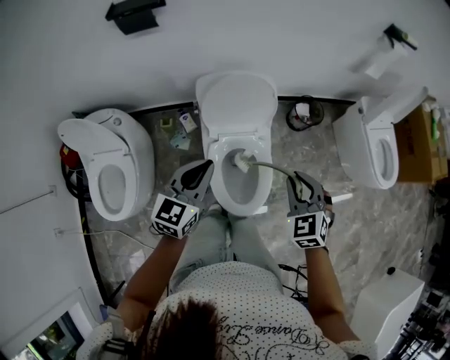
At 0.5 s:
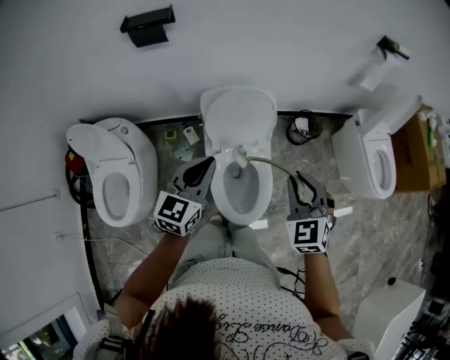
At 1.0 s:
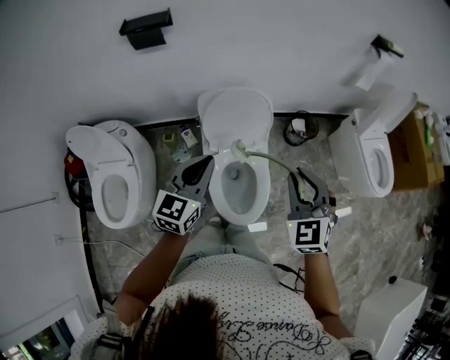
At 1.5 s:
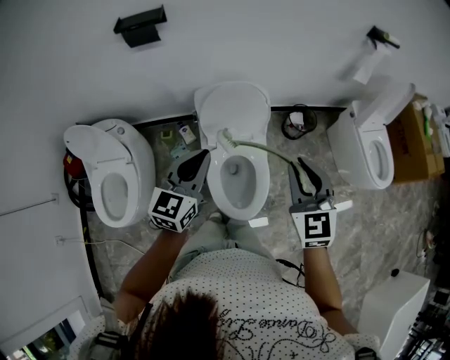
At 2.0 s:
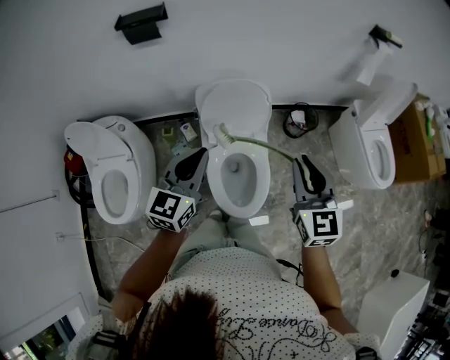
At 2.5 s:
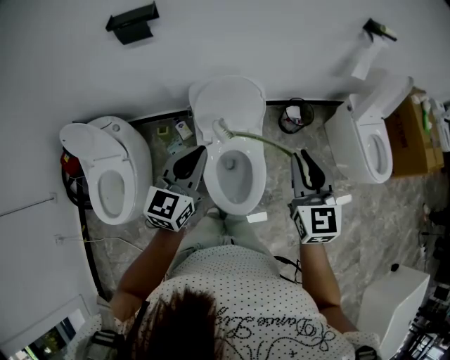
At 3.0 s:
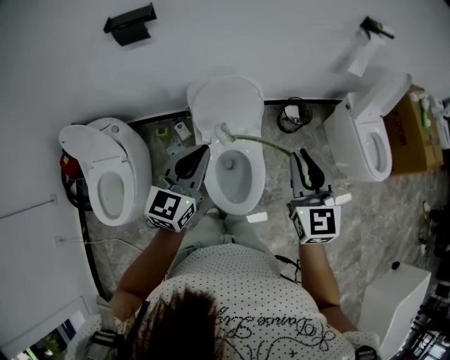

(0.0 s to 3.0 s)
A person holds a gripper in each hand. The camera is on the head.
0.0 s - 1.5 s: The right gripper heads upward, covering about 15 cm, and turns by about 20 degrees. The left gripper shifts roughly 5 cm upward.
1.5 s - 3.0 s: There are only small adjustments of the grippers.

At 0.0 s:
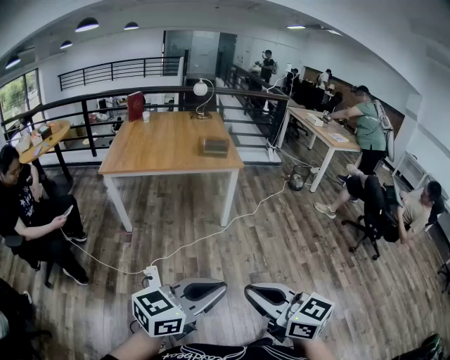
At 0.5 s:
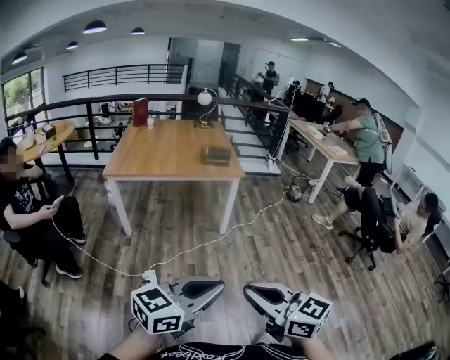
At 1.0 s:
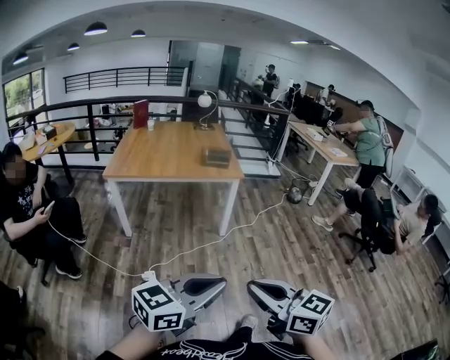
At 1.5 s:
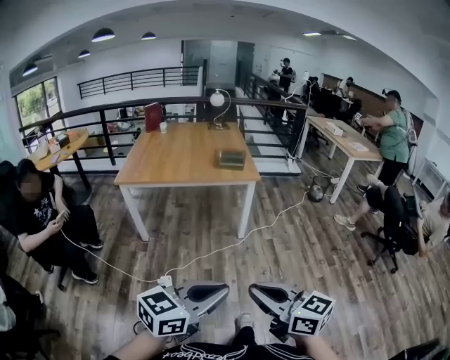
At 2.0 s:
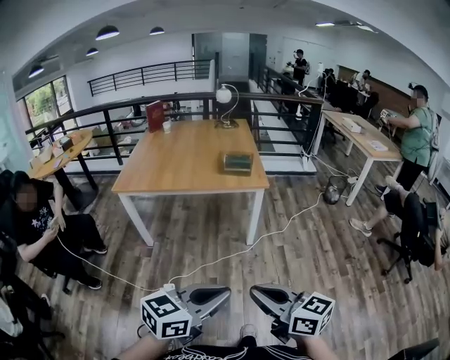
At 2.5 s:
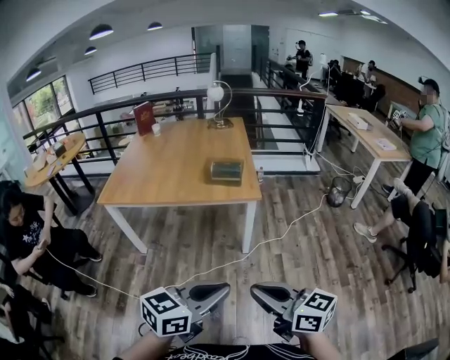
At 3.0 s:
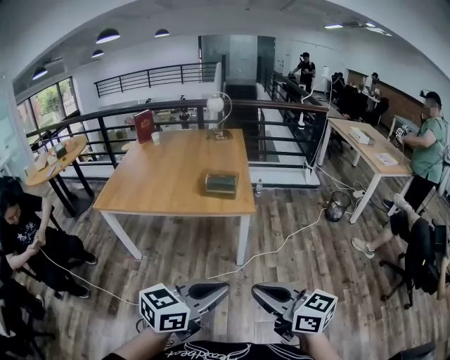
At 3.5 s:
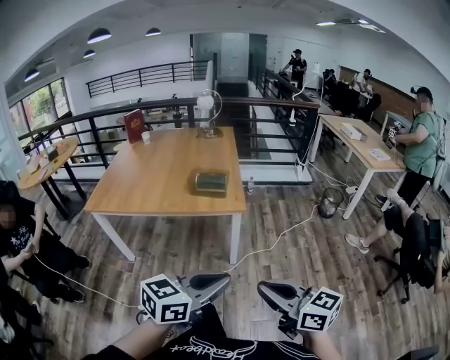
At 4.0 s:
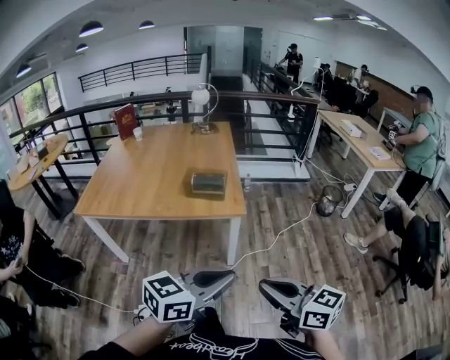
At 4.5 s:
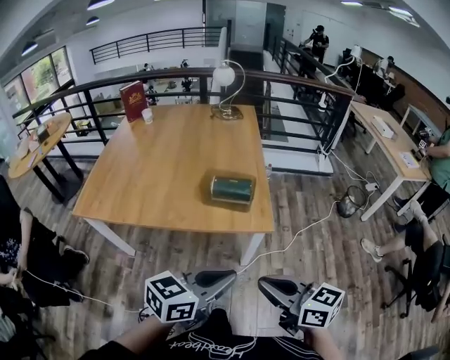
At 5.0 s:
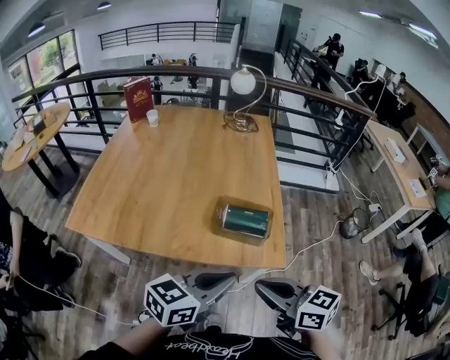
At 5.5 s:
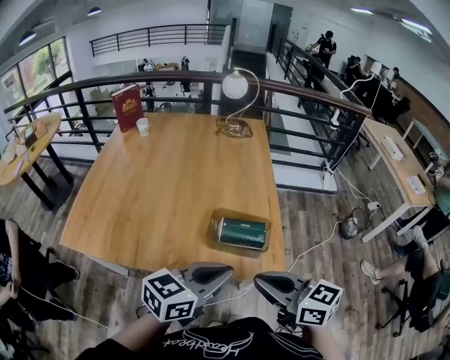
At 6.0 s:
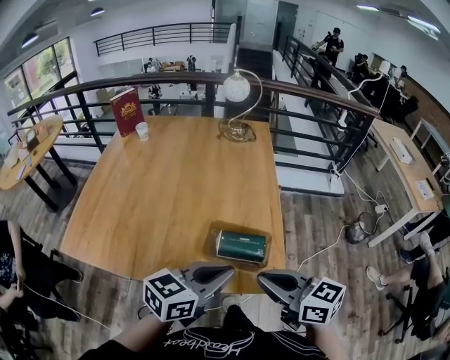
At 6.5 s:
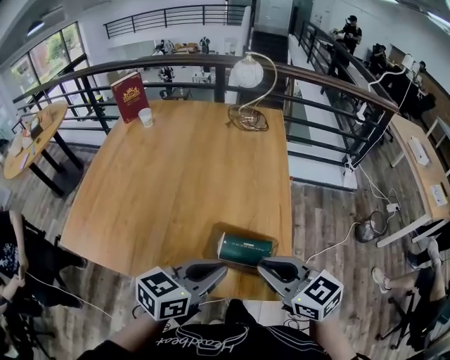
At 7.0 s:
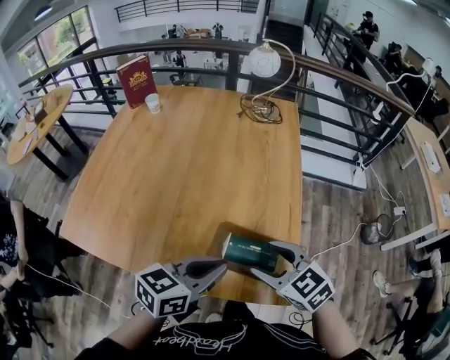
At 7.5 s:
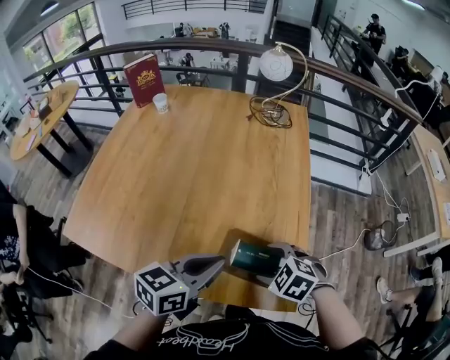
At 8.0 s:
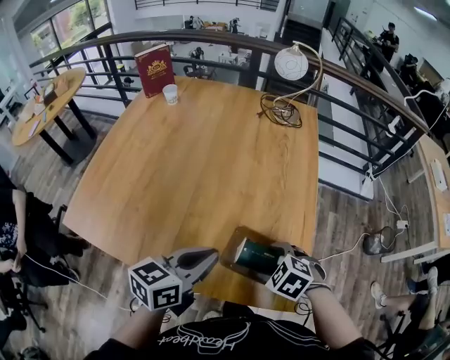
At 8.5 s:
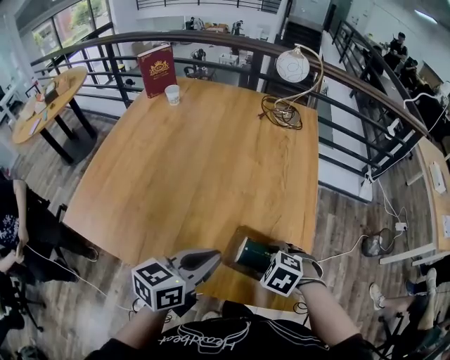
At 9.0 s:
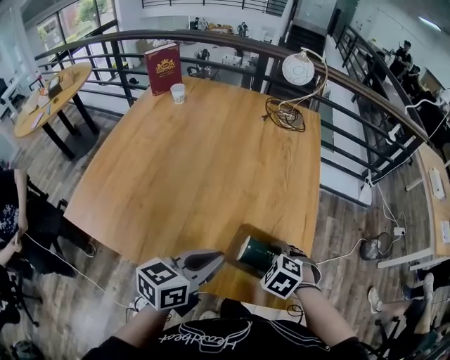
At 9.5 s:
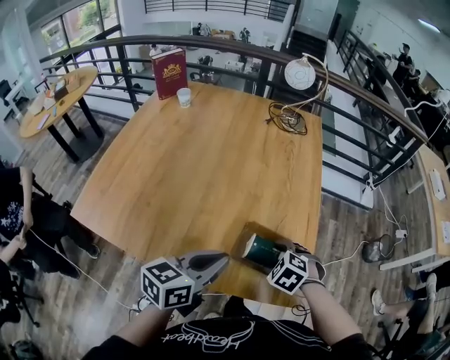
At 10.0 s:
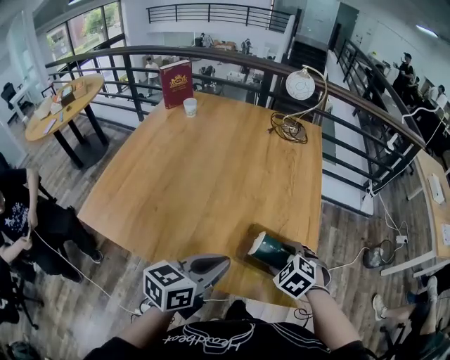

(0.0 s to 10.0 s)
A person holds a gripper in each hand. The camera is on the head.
0.0 s - 2.0 s: The grippers both shift forward by roughly 25 cm.
2.0 s - 4.0 s: The grippers both shift forward and to the right by roughly 35 cm.
4.0 s - 6.0 s: The two grippers travel together, forward, some 50 cm.
6.0 s - 8.0 s: The right gripper is displaced downward and forward by roughly 25 cm, angles its fingers downward, by some 50 degrees, and opens, while the left gripper is displaced forward, to the left and downward by about 20 cm, and changes its angle by roughly 20 degrees.
8.0 s - 10.0 s: The left gripper changes place by approximately 5 cm.

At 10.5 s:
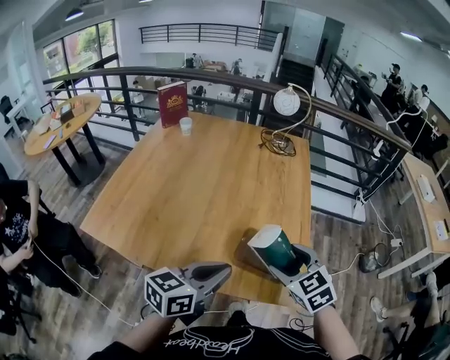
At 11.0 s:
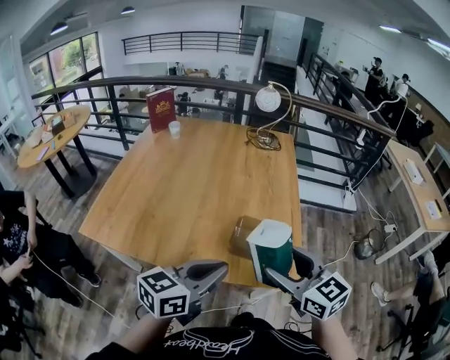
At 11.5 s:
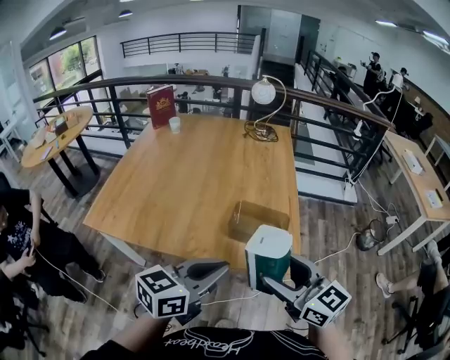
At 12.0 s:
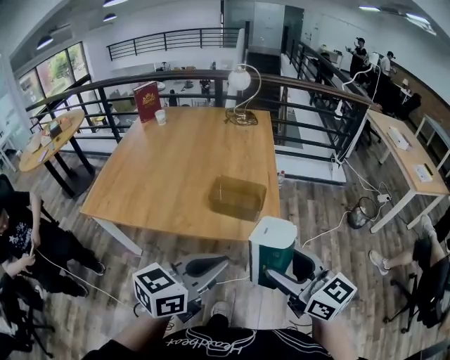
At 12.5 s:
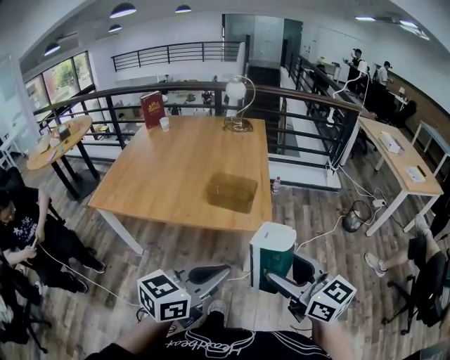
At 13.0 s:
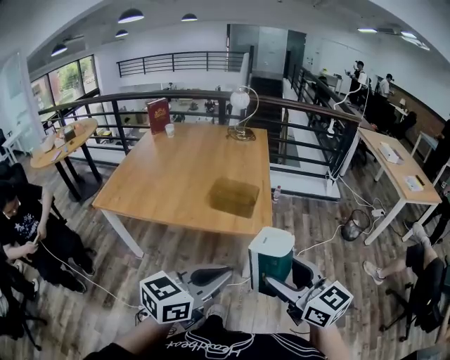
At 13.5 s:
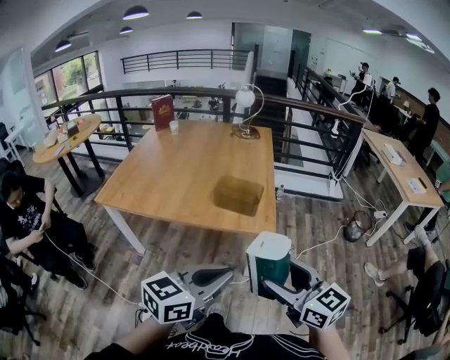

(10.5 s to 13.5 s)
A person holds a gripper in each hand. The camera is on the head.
10.5 s - 12.0 s: The right gripper heads backward, covering roughly 30 cm, and angles its fingers upward, by roughly 30 degrees. Meanwhile the left gripper moves backward and to the right, about 30 cm.
12.0 s - 13.5 s: The two grippers go about 15 cm backward.

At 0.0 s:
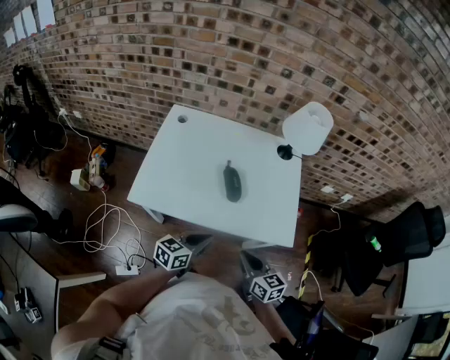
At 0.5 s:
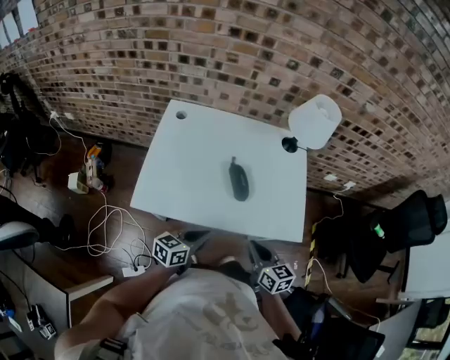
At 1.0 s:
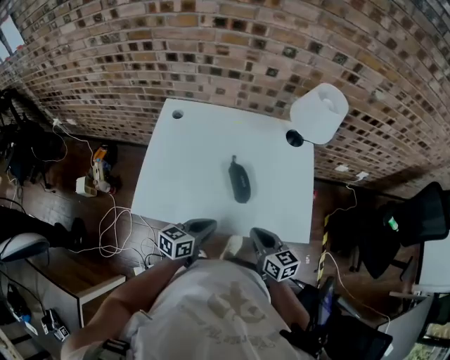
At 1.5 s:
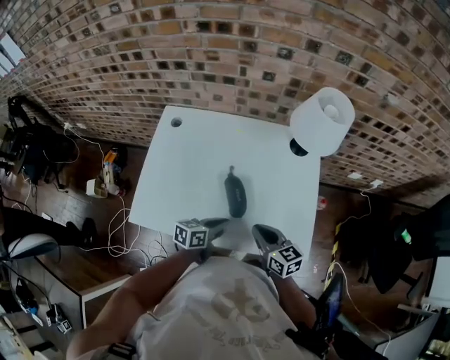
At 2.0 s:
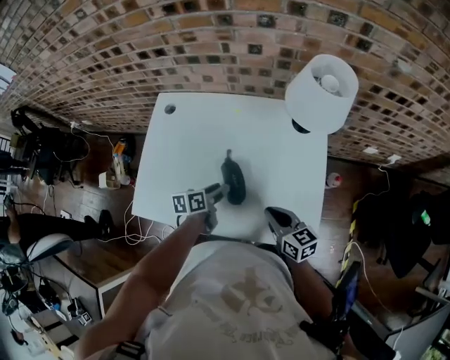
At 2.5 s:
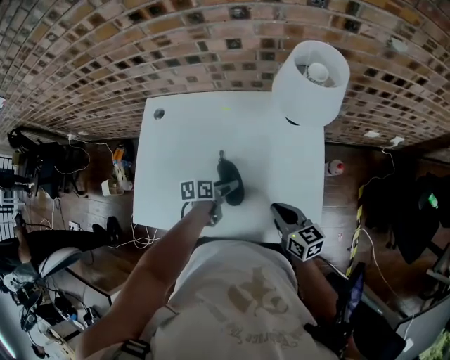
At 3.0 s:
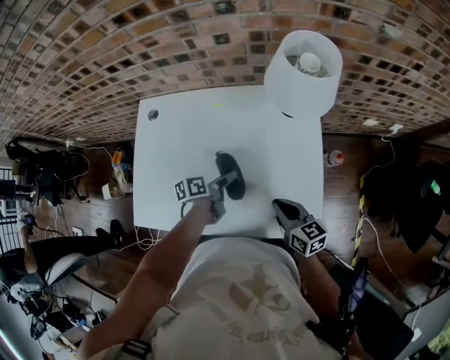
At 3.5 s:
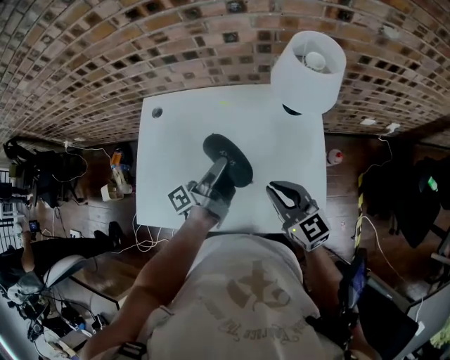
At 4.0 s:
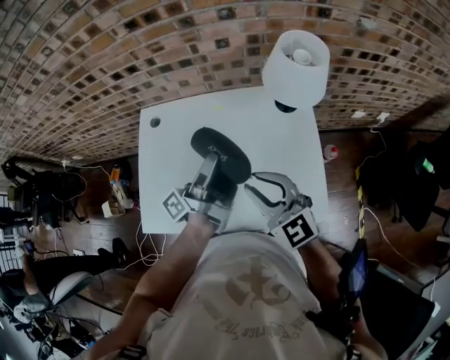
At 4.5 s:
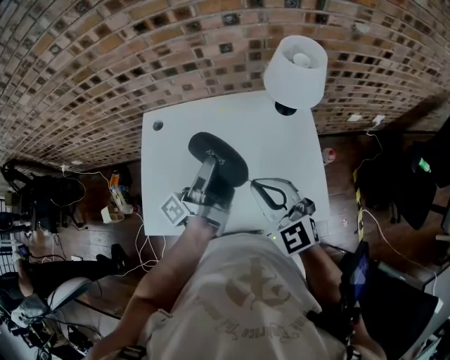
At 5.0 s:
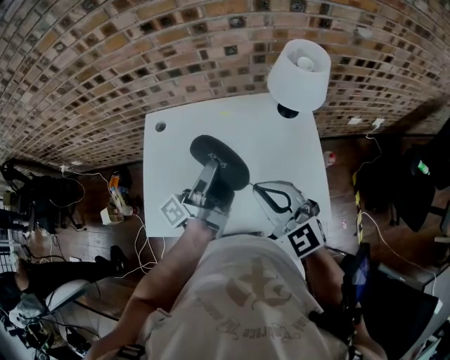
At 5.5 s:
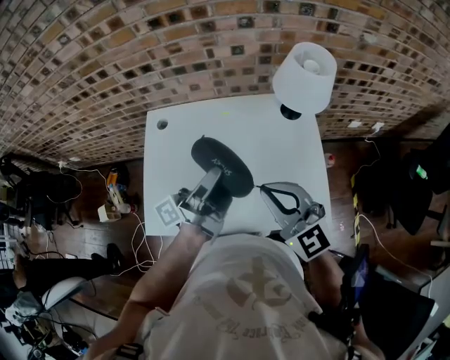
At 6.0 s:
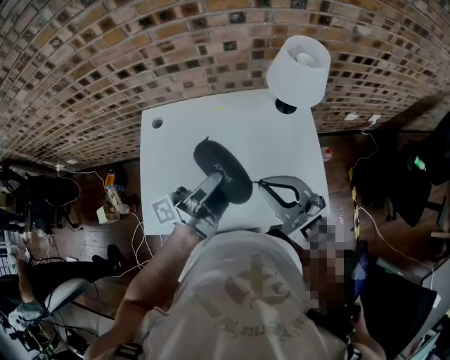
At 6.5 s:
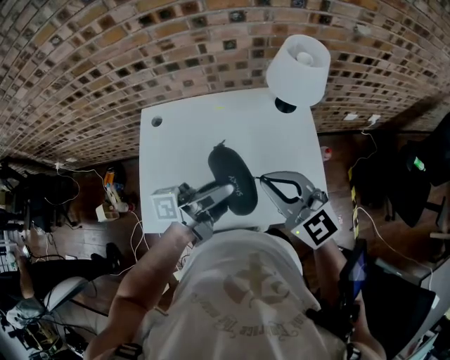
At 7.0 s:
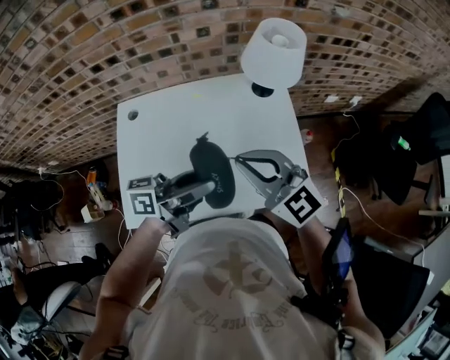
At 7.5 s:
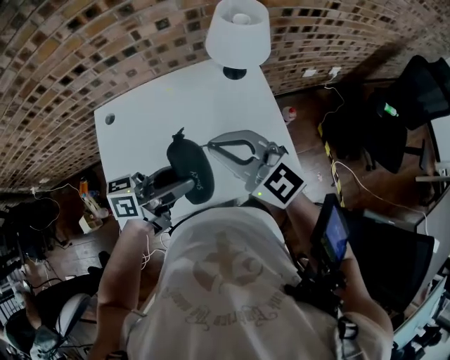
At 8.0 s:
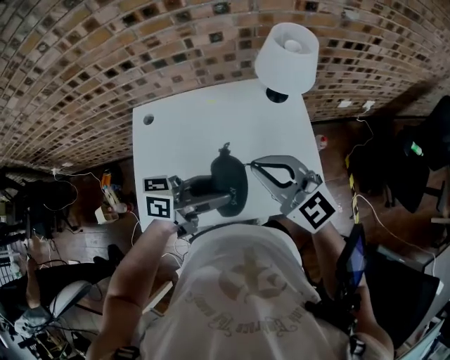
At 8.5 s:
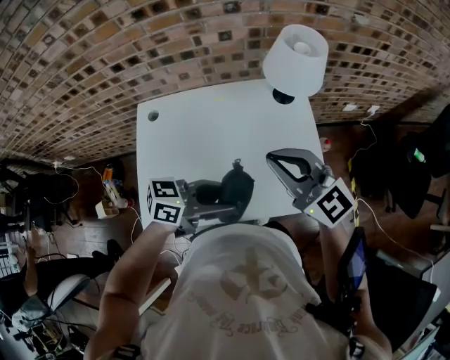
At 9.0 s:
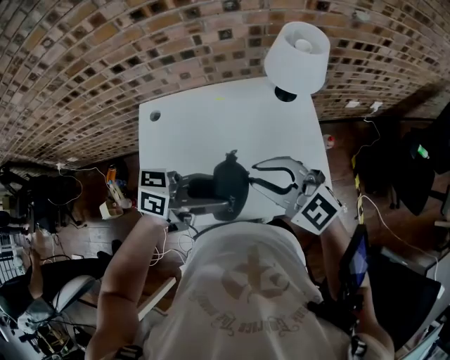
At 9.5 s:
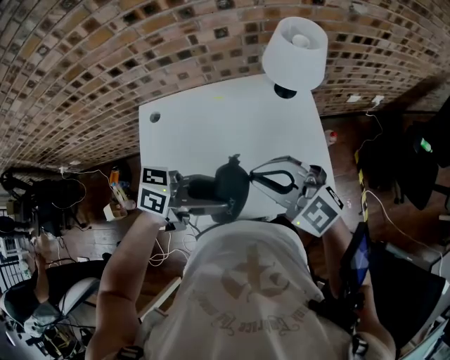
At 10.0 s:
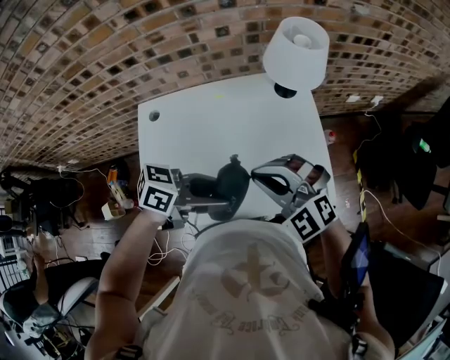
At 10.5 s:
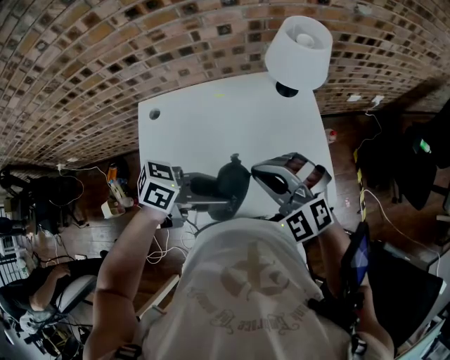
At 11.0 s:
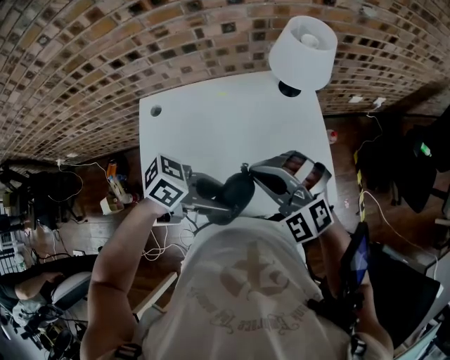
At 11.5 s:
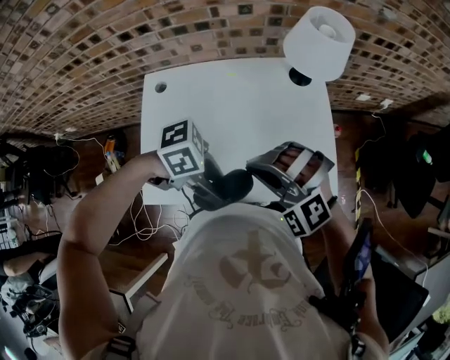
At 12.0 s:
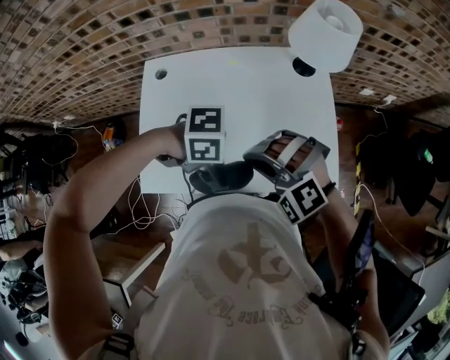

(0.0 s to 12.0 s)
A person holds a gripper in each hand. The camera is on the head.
0.0 s - 2.0 s: Both grippers travel together forward, roughly 25 cm. The left gripper turns by roughly 40 degrees, and opens up.
2.0 s - 4.0 s: The left gripper heads upward, covering some 25 cm, and points its fingers about 60 degrees further upward. Meanwhile the right gripper moves upward and to the left, some 20 cm, and rotates around the line of its fingers by about 40 degrees, counterclockwise from behind.
4.0 s - 6.0 s: The left gripper shifts about 5 cm backward; the right gripper changes place by about 5 cm.
6.0 s - 8.0 s: The left gripper shifts by about 10 cm, and changes its angle by roughly 50 degrees.
8.0 s - 10.0 s: The left gripper turns by roughly 20 degrees. Meanwhile the right gripper rotates about 30 degrees.
10.0 s - 12.0 s: Both grippers move downward, about 5 cm. The right gripper swivels roughly 30 degrees. The left gripper turns by approximately 60 degrees.
